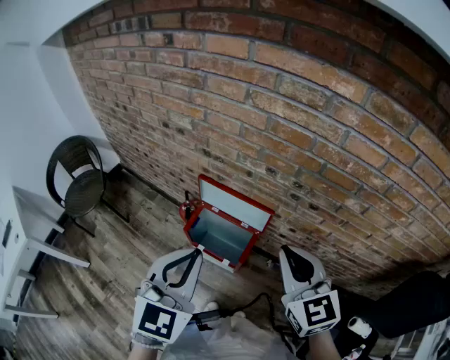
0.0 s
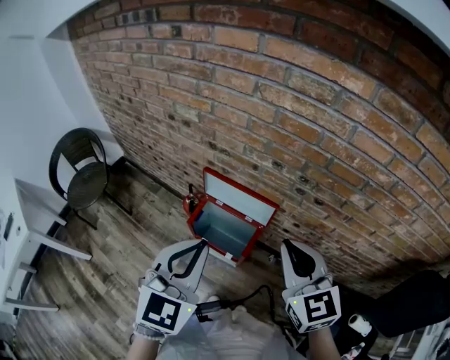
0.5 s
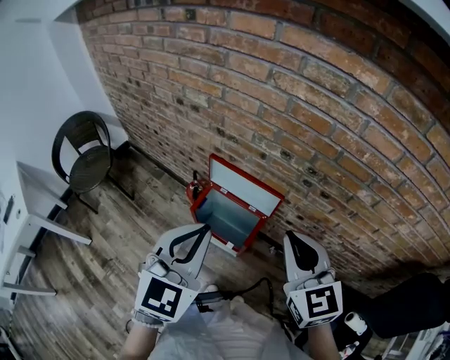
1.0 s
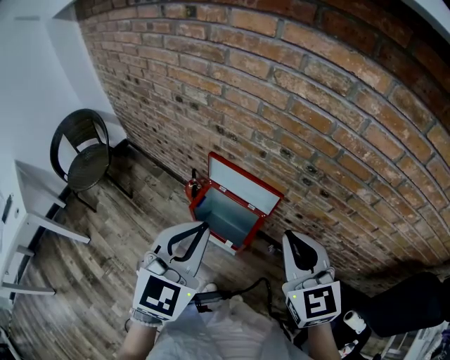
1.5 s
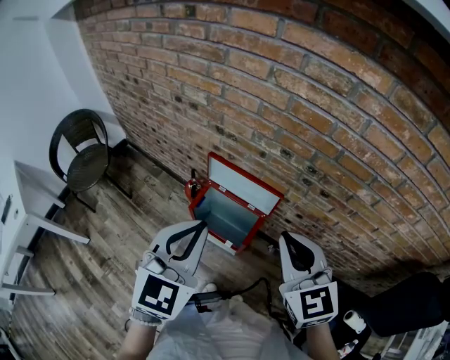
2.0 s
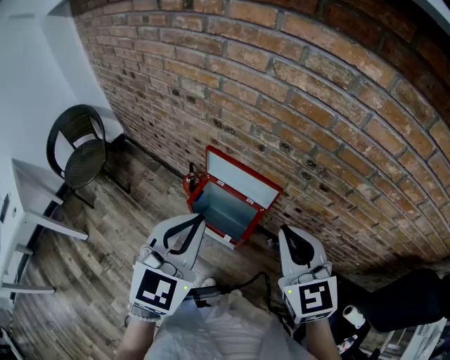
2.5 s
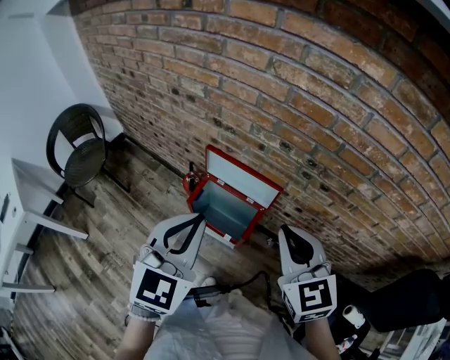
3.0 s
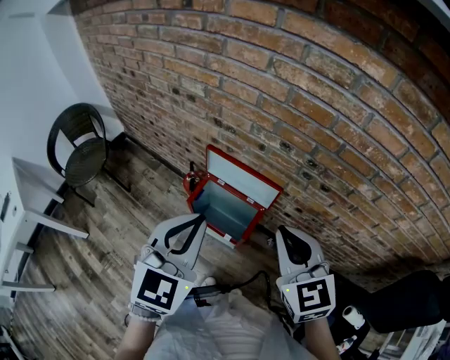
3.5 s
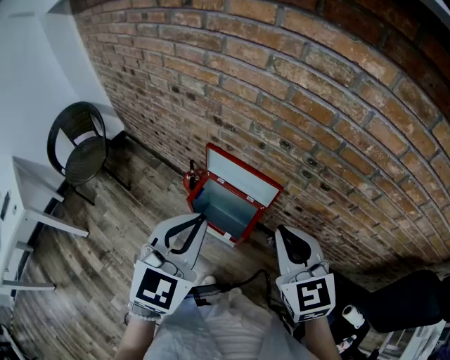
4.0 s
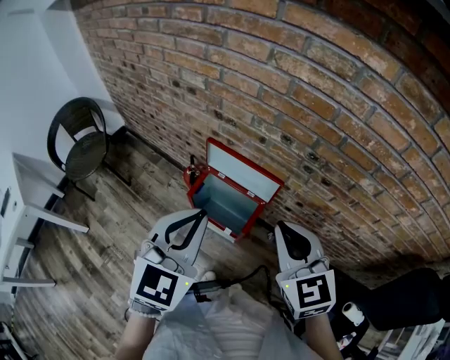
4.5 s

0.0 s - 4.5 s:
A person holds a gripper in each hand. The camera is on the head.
0.0 s - 4.5 s: The grippers stay close to where they were, moving slightly.

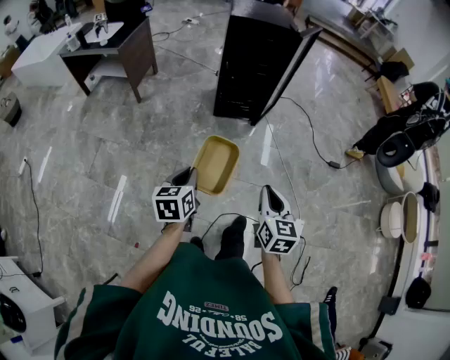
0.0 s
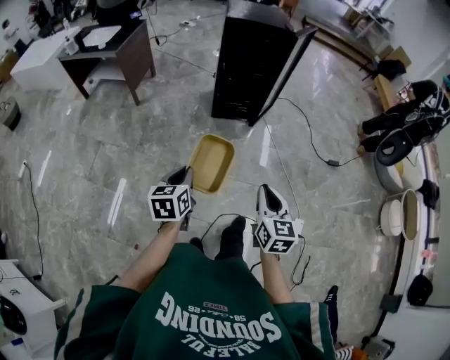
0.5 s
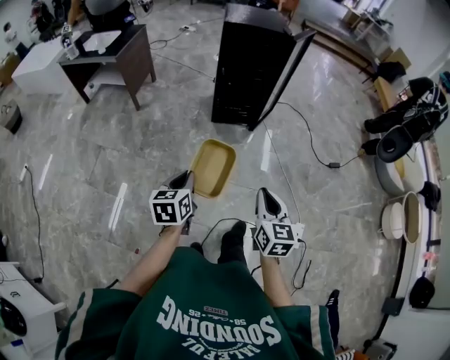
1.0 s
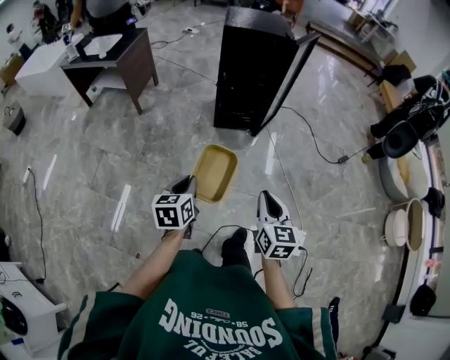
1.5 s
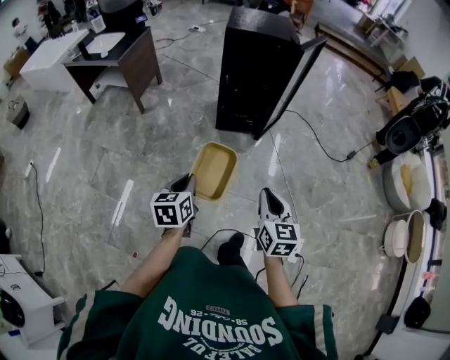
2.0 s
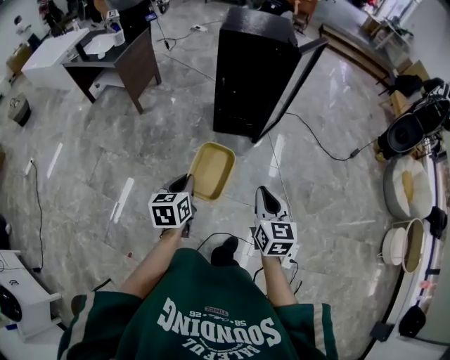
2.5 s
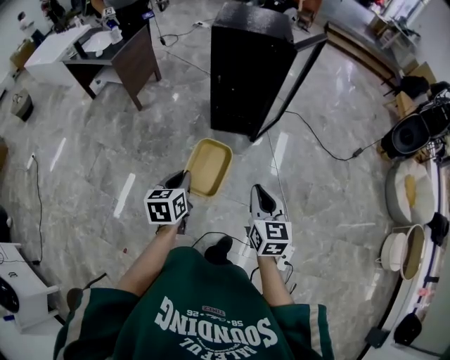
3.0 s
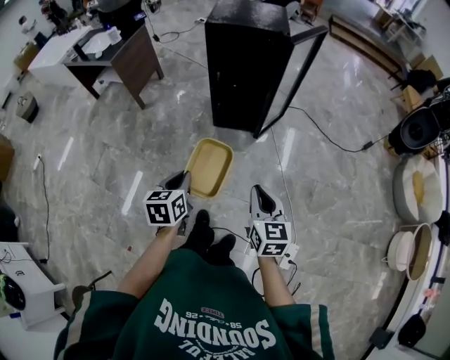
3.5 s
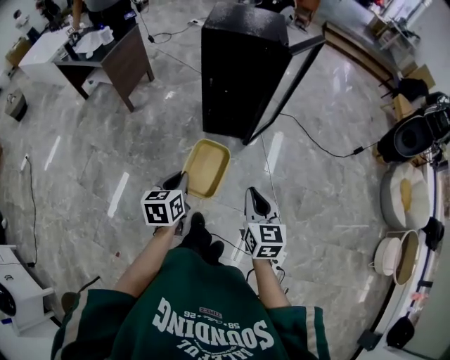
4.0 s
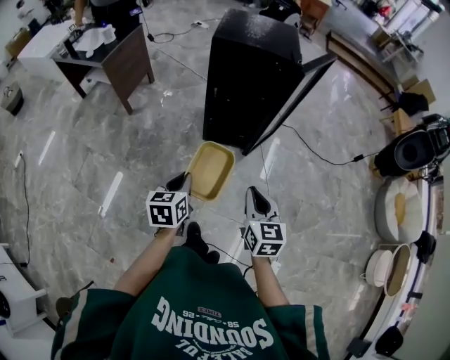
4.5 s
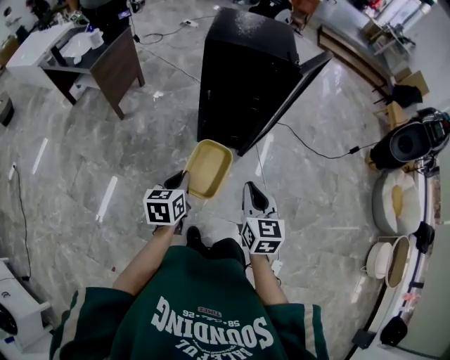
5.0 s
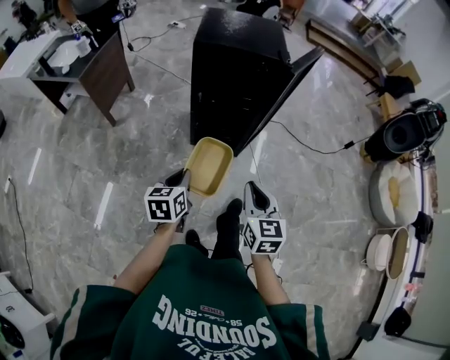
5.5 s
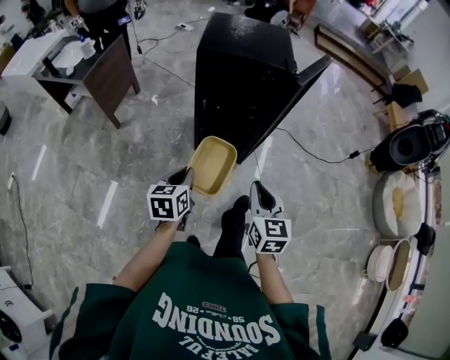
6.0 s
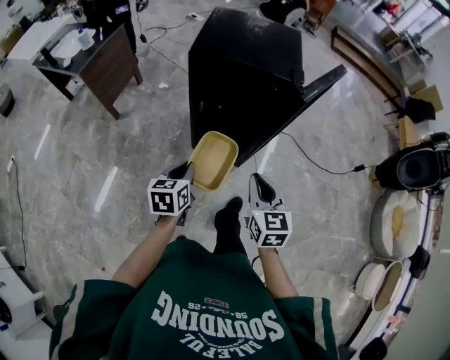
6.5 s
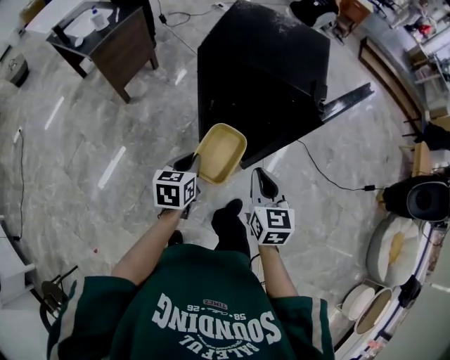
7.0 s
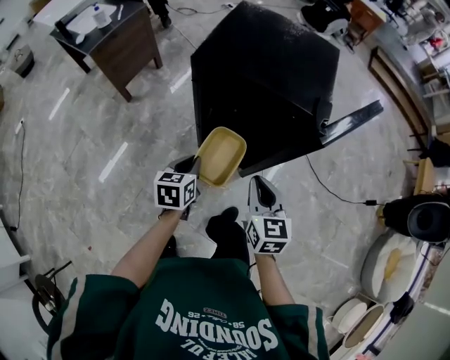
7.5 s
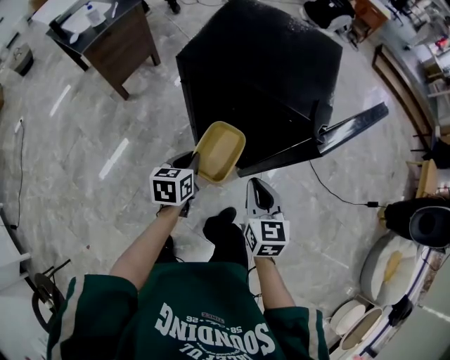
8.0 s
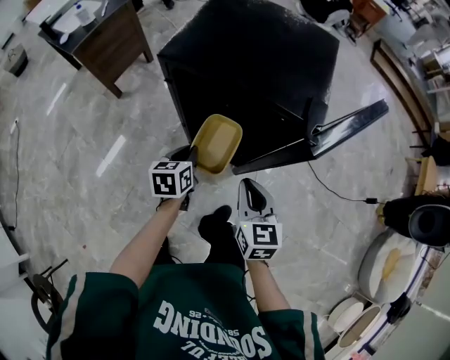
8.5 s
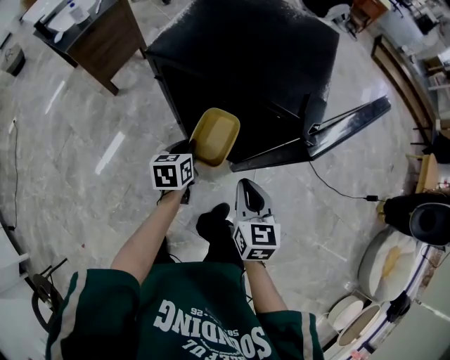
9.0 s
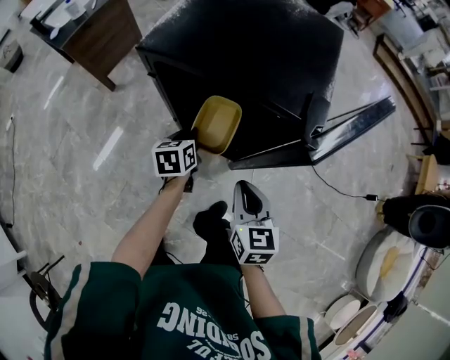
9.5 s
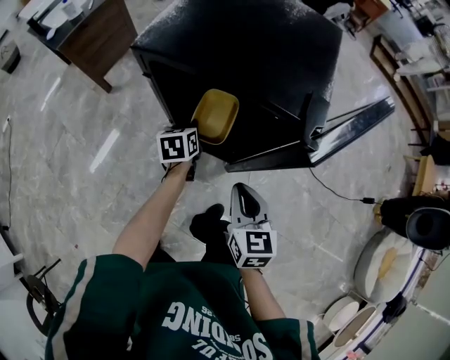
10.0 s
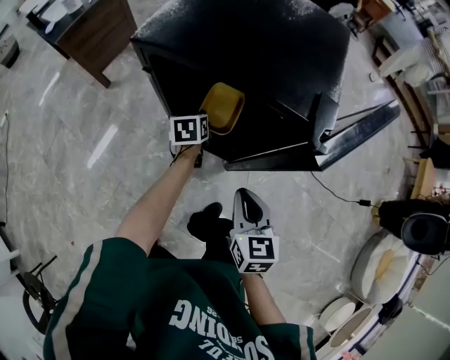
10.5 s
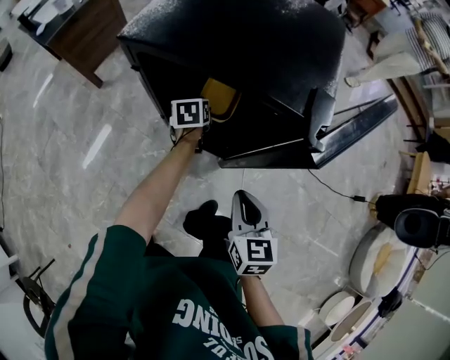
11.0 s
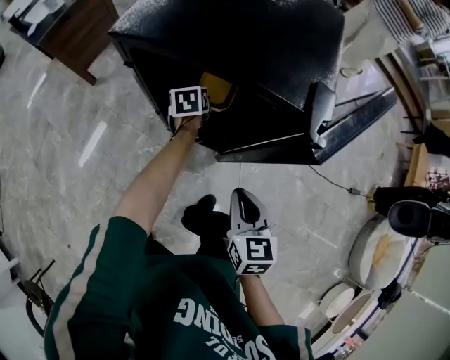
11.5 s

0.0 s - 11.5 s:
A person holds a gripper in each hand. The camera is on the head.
0.0 s - 2.0 s: The grippers both shift forward by some 10 cm.
2.0 s - 4.0 s: Both grippers travel together forward and to the right, roughly 15 cm.
4.0 s - 6.0 s: The two grippers go some 20 cm forward.
6.0 s - 7.5 s: The left gripper shifts approximately 25 cm forward and downward; the right gripper travels forward by about 25 cm.
7.5 s - 9.5 s: The left gripper travels forward, downward and to the right by roughly 15 cm. The right gripper heads downward, covering about 5 cm.
9.5 s - 11.5 s: The left gripper moves forward and downward, approximately 15 cm.

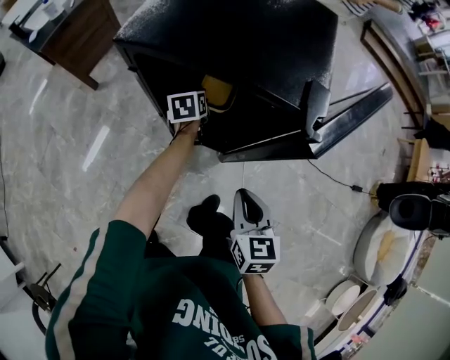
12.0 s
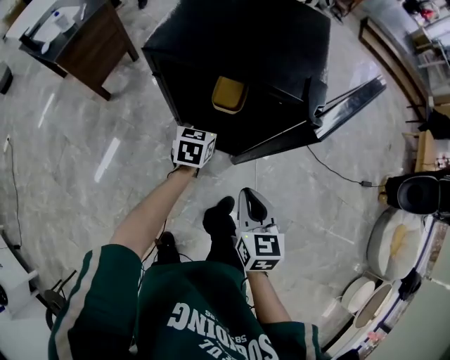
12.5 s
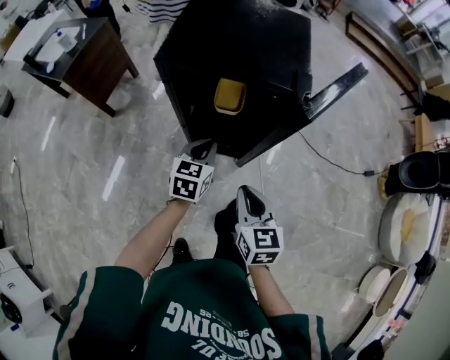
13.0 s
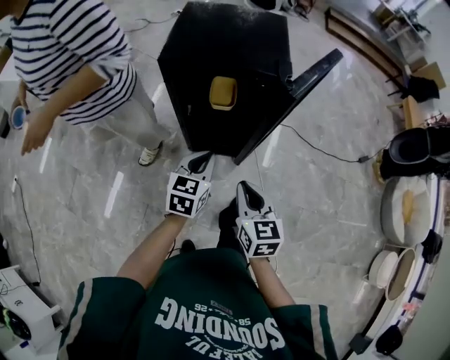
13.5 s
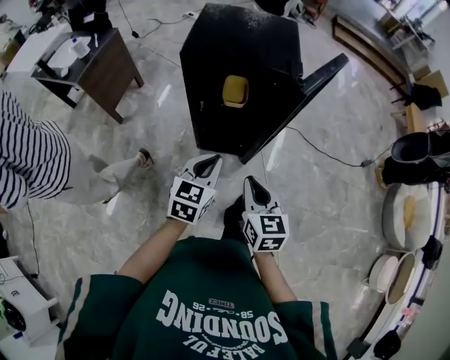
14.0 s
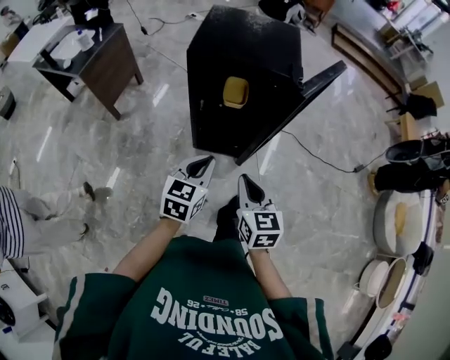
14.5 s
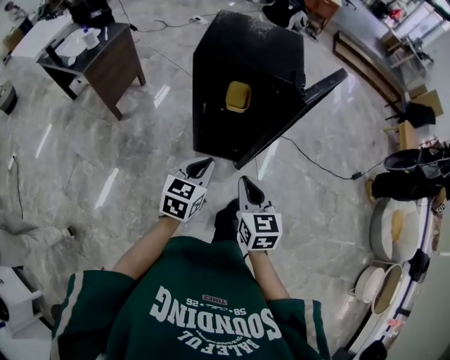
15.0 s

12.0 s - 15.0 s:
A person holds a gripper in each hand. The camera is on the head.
12.0 s - 13.5 s: The left gripper shifts roughly 35 cm backward and upward, swivels about 40 degrees, and closes; the right gripper goes roughly 20 cm backward, upward and to the left.
13.5 s - 15.0 s: The right gripper moves approximately 5 cm. The left gripper travels backward by some 10 cm.

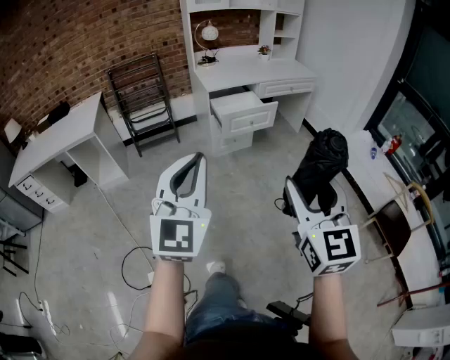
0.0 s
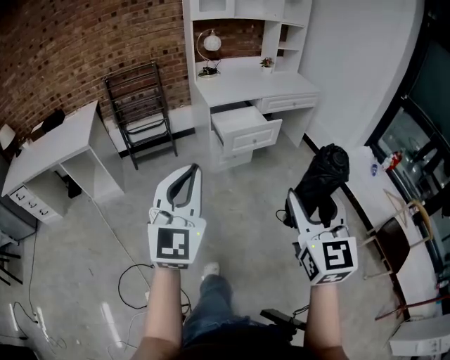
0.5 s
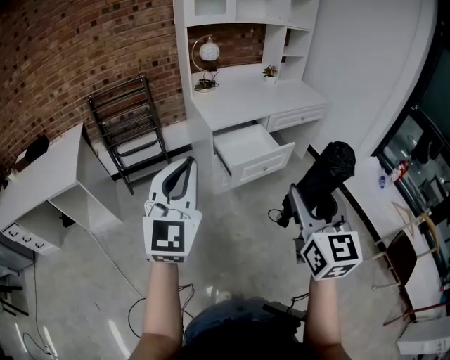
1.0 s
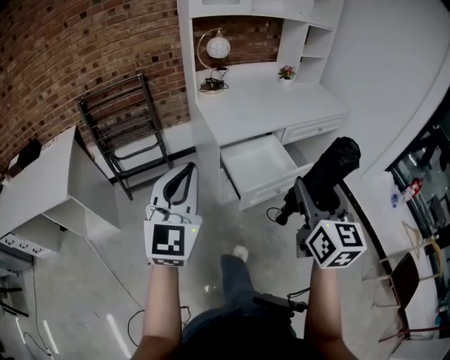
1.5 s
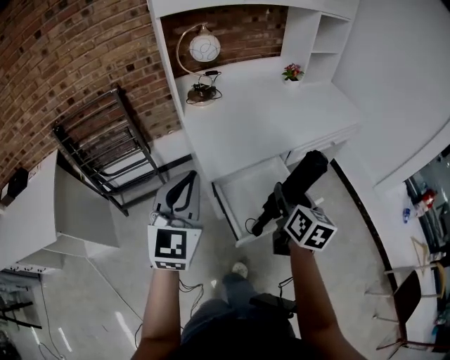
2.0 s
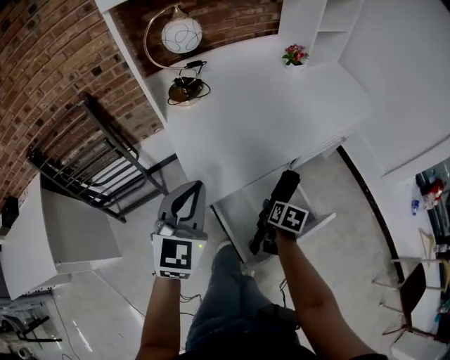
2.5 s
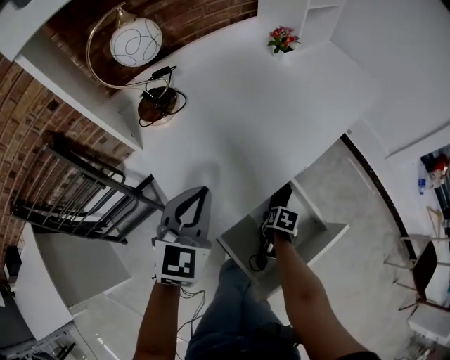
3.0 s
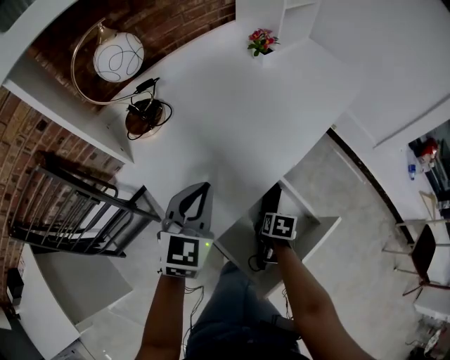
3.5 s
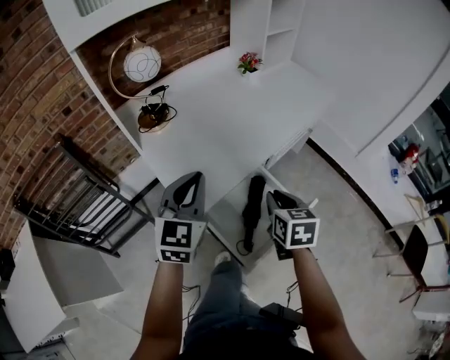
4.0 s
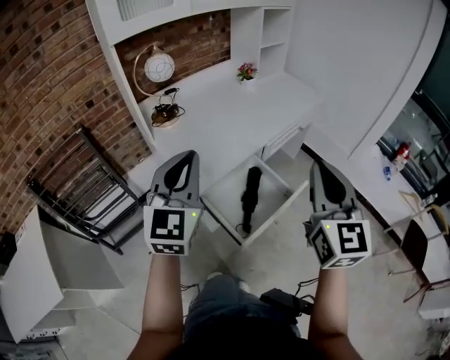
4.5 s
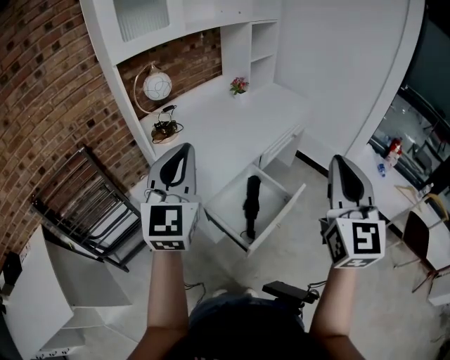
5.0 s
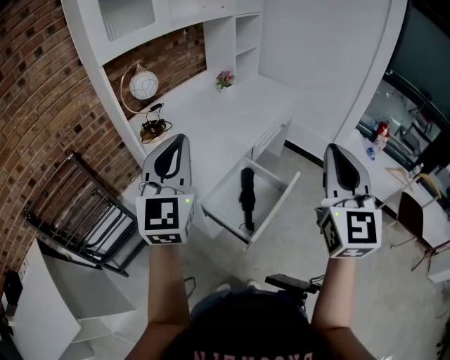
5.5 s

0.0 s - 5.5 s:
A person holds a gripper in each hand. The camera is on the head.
0.0 s - 2.0 s: The pair of grippers is taken forward, about 80 cm. The right gripper rotates approximately 40 degrees.
2.0 s - 3.5 s: The left gripper goes about 35 cm forward and downward, and turns by some 30 degrees. The right gripper moves downward and forward, approximately 35 cm, and points its fingers about 50 degrees further downward.
3.5 s - 5.5 s: The right gripper heads upward and backward, covering approximately 60 cm, angles its fingers upward, by approximately 80 degrees, and closes its fingers. Meanwhile the left gripper shifts approximately 35 cm upward and backward, and tilts its fingers roughly 30 degrees upward.

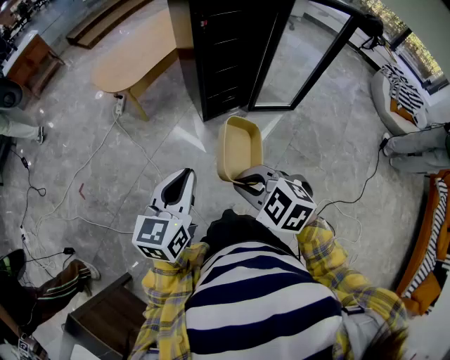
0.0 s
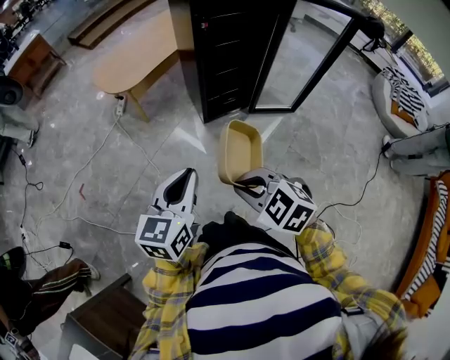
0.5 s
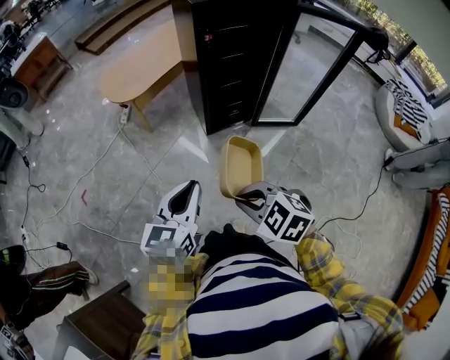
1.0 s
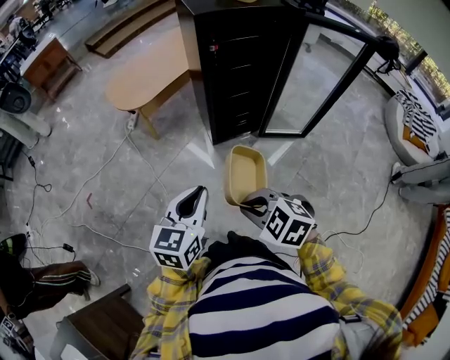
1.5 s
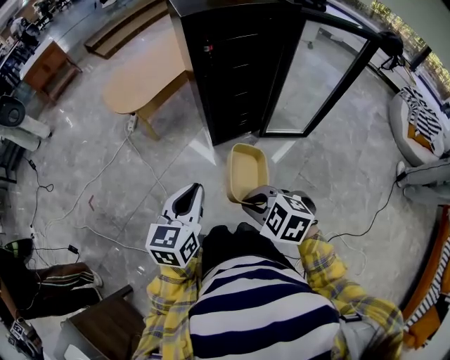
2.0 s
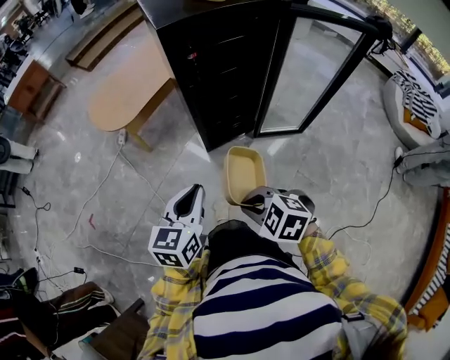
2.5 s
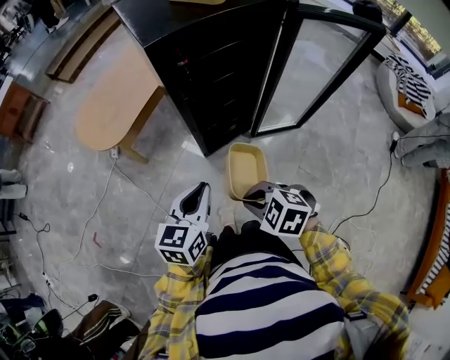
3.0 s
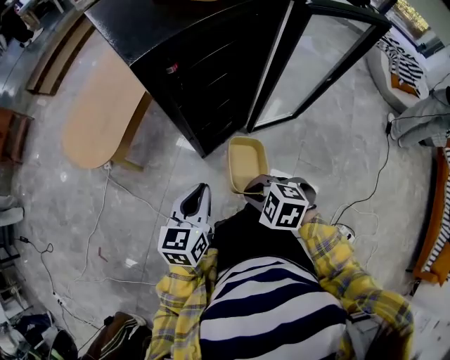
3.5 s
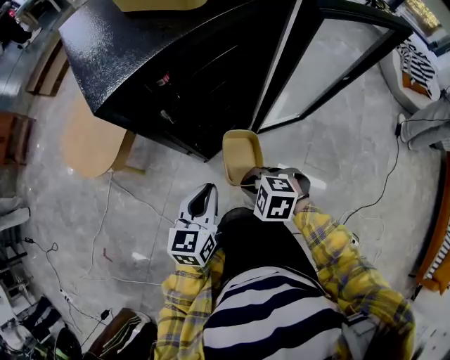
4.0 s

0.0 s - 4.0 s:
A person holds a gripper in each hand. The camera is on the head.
0.0 s - 2.0 s: The right gripper heads to the right, covering approximately 5 cm; the left gripper moves to the right and forward, some 10 cm.
2.0 s - 4.0 s: The left gripper heads forward, to the right and downward, covering some 25 cm; the right gripper is displaced forward and downward by some 25 cm.
